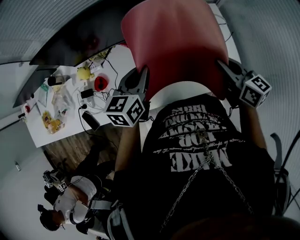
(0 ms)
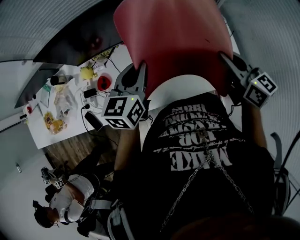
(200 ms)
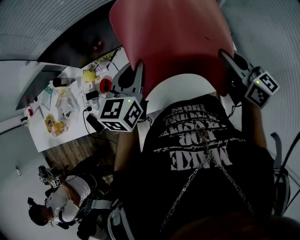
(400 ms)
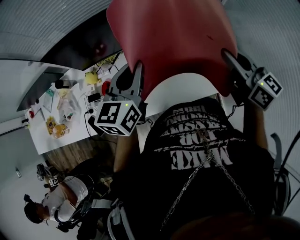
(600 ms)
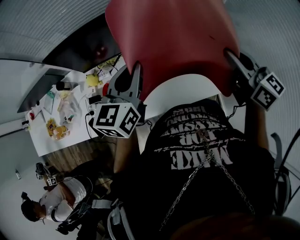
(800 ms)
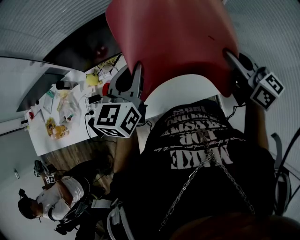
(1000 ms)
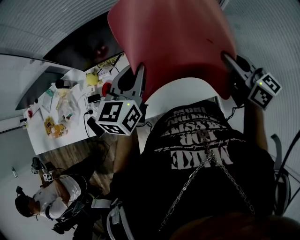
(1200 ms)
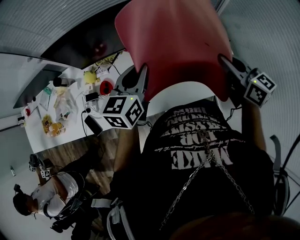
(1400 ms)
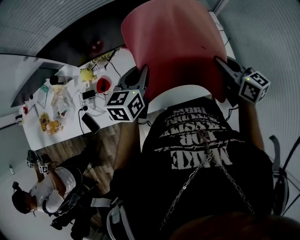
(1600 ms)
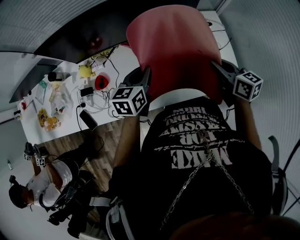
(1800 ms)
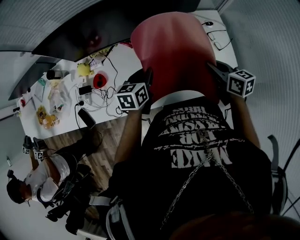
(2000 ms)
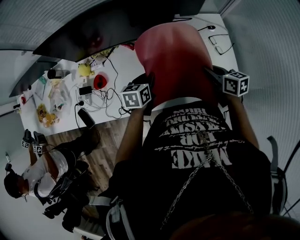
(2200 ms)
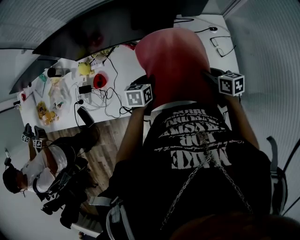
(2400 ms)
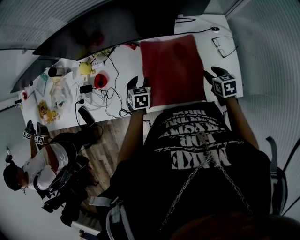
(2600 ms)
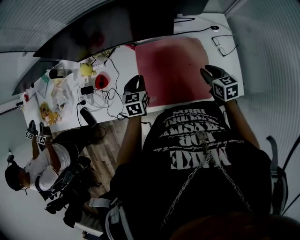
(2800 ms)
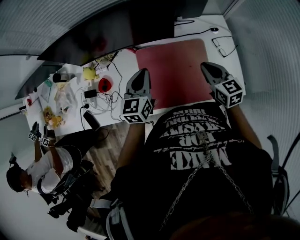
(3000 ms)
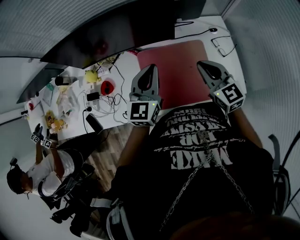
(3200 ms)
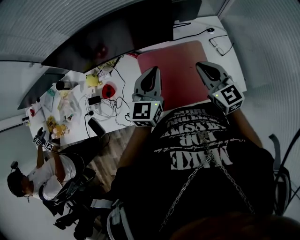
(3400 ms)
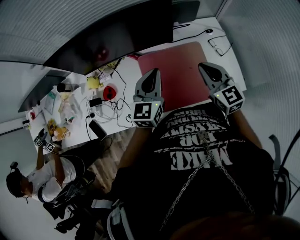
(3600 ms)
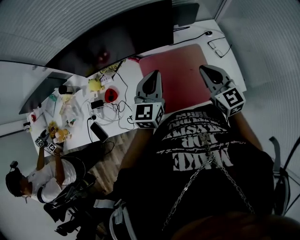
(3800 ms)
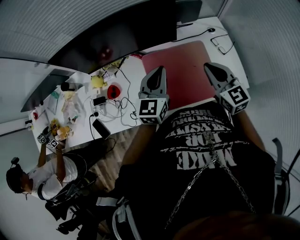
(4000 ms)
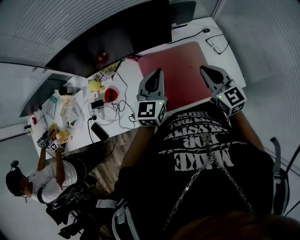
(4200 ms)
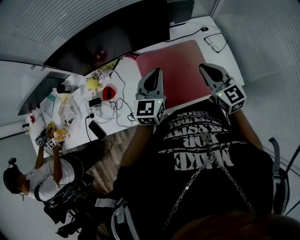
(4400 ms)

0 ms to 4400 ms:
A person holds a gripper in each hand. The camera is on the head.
0 ms to 1400 ms: Both grippers travel together upward, about 10 cm.
1400 ms to 3000 ms: The left gripper reaches some 30 cm downward, then returns, and opens, then closes once more; the right gripper is displaced downward by some 15 cm, and opens, then closes again.
3000 ms to 4400 ms: The right gripper goes approximately 5 cm upward. The left gripper ends up roughly 5 cm from where it was.

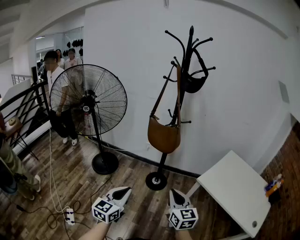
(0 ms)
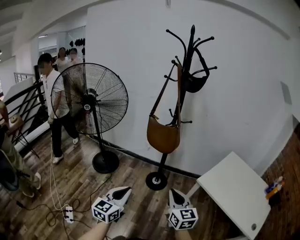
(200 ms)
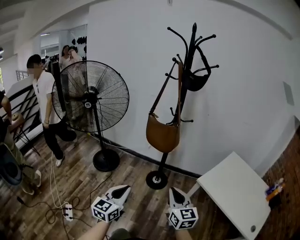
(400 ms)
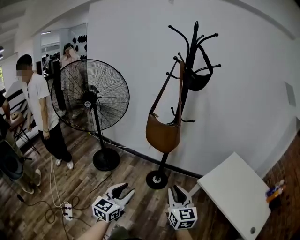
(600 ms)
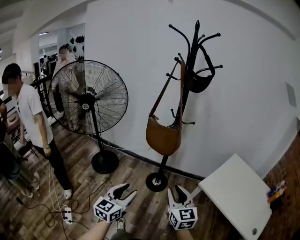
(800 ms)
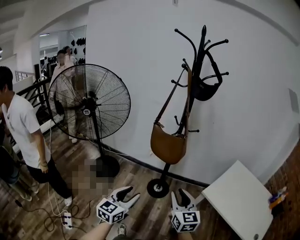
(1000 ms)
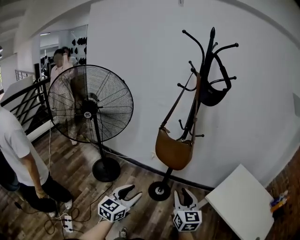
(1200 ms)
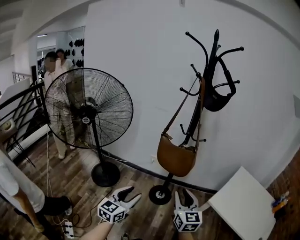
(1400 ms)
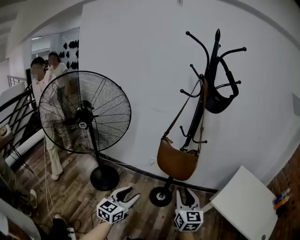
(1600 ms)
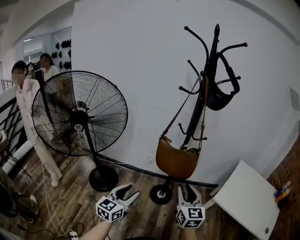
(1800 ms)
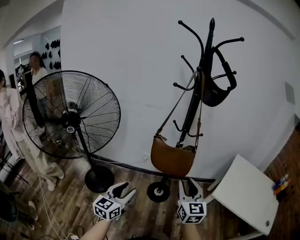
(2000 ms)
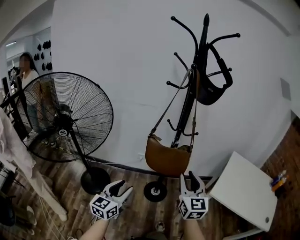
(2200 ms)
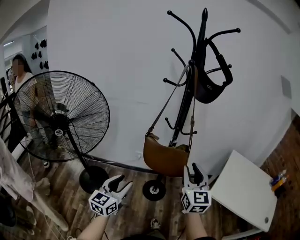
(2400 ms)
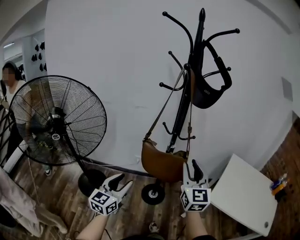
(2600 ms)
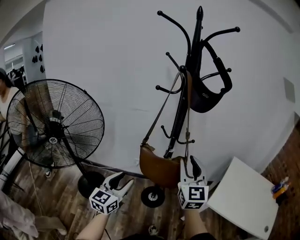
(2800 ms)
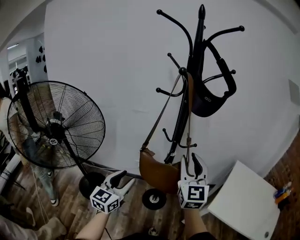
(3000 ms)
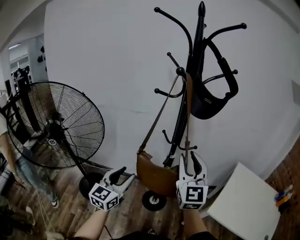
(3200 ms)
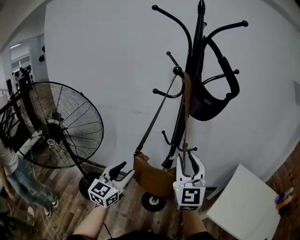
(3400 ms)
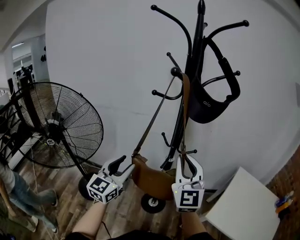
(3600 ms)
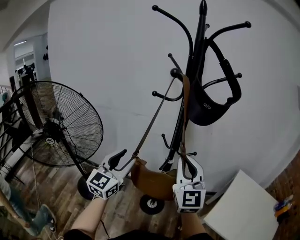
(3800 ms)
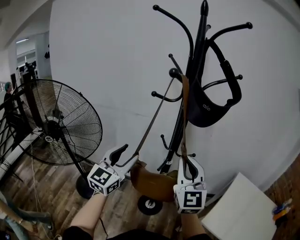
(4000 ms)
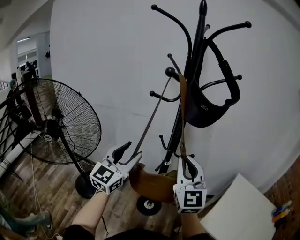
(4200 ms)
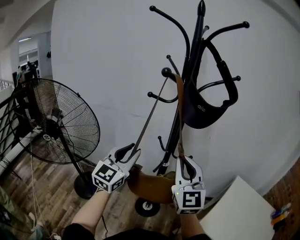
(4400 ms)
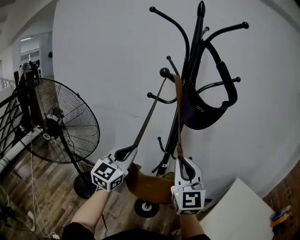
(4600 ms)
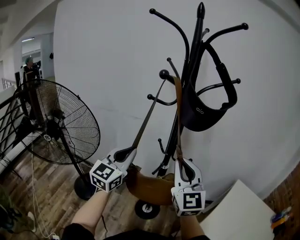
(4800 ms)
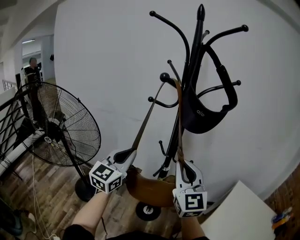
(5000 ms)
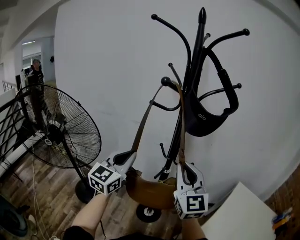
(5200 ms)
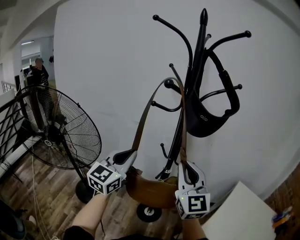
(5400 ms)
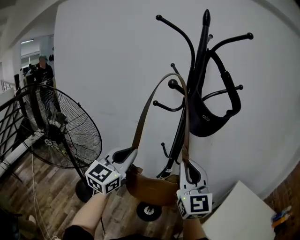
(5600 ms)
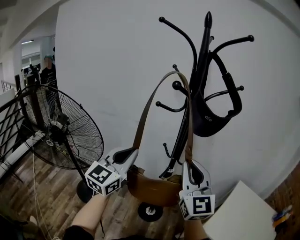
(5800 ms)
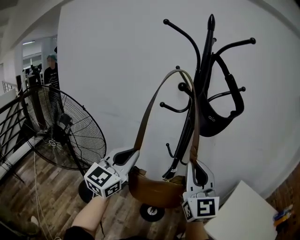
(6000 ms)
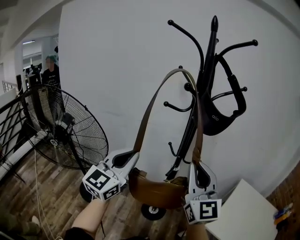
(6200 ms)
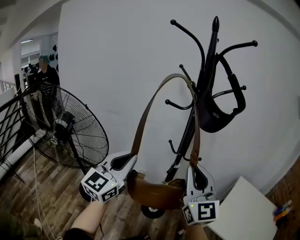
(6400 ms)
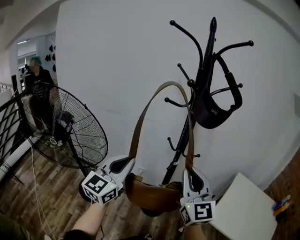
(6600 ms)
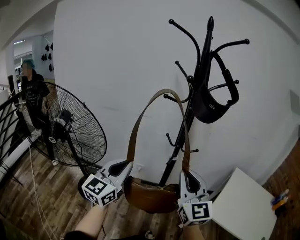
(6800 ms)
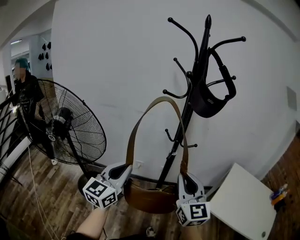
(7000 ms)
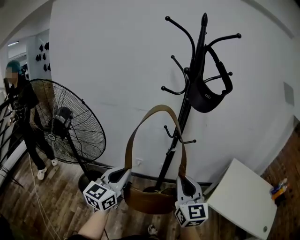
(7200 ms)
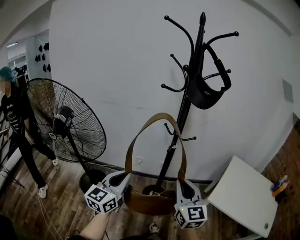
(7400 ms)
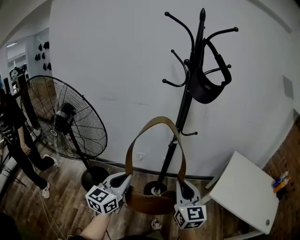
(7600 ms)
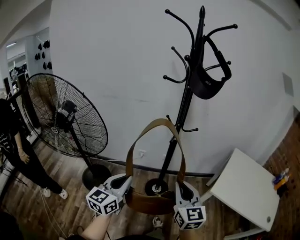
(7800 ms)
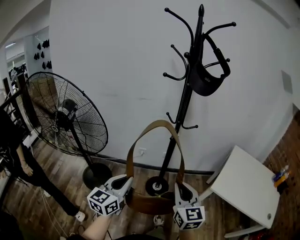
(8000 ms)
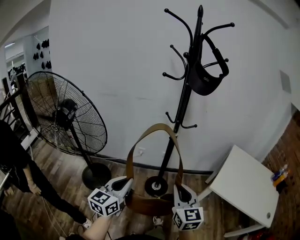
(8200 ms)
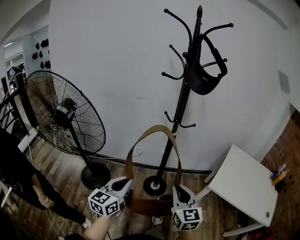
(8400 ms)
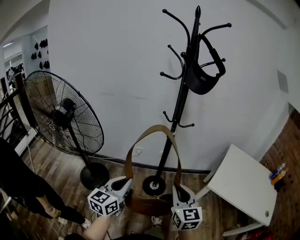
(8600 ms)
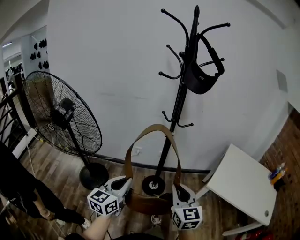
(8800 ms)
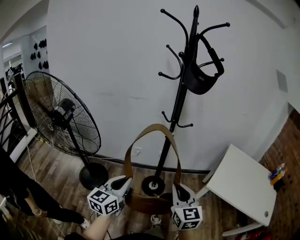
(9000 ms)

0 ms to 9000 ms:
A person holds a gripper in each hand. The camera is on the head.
0 ms to 1600 ms: The two grippers go roughly 20 cm forward and to the left. The right gripper opens up, while the left gripper opens.
1600 ms to 3000 ms: The right gripper travels forward and upward by about 25 cm, and changes its angle by about 20 degrees; the left gripper goes approximately 20 cm forward.
3000 ms to 4400 ms: The right gripper changes place by about 5 cm, and closes up. The left gripper is displaced upward, forward and to the right by roughly 20 cm.
4400 ms to 6000 ms: Both grippers travel together upward, roughly 5 cm. The left gripper closes.
6000 ms to 7600 ms: Both grippers travel together downward and backward, approximately 25 cm. The left gripper changes its angle by approximately 20 degrees; the right gripper rotates roughly 20 degrees.
7600 ms to 9000 ms: The left gripper moves approximately 5 cm. The right gripper shifts by roughly 5 cm.

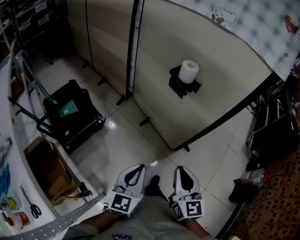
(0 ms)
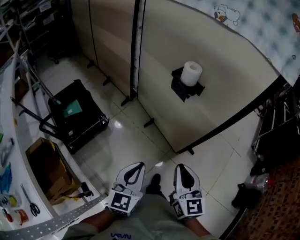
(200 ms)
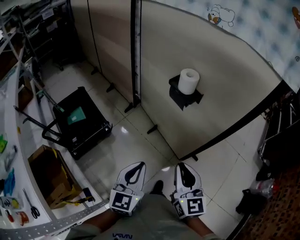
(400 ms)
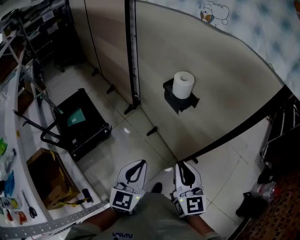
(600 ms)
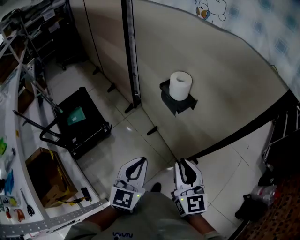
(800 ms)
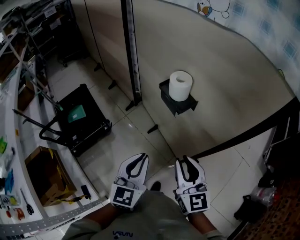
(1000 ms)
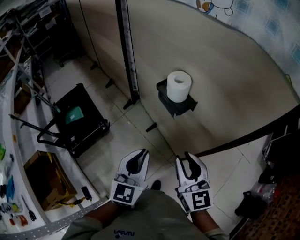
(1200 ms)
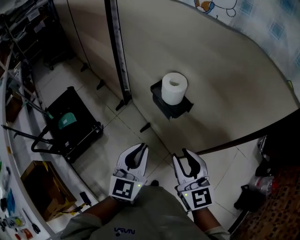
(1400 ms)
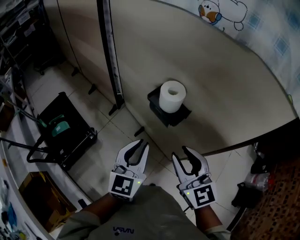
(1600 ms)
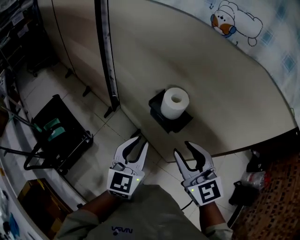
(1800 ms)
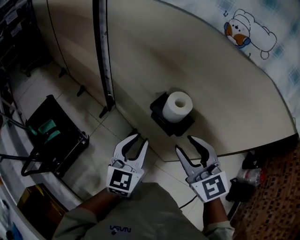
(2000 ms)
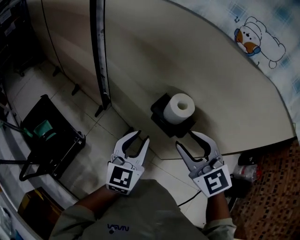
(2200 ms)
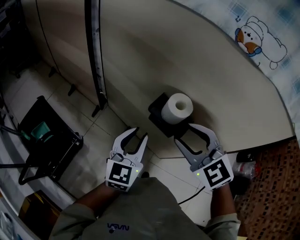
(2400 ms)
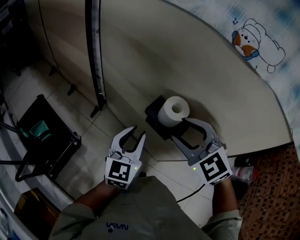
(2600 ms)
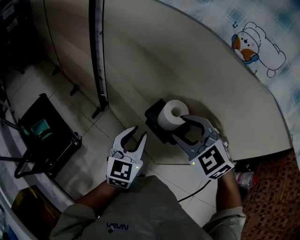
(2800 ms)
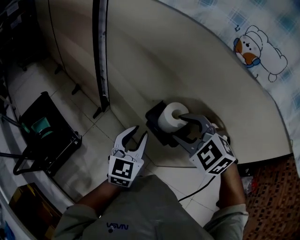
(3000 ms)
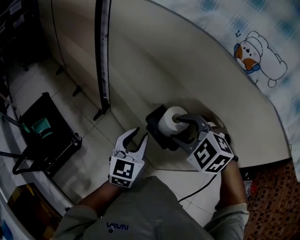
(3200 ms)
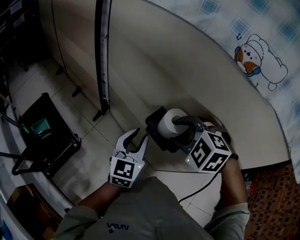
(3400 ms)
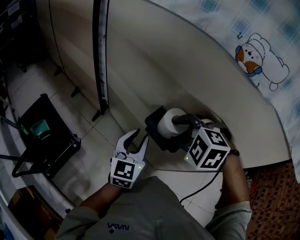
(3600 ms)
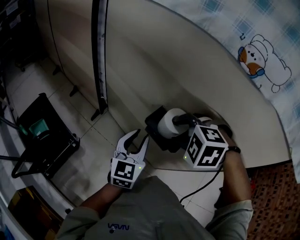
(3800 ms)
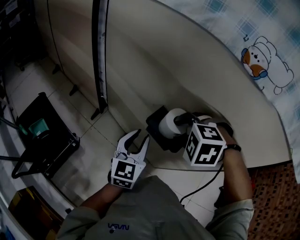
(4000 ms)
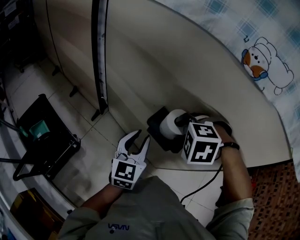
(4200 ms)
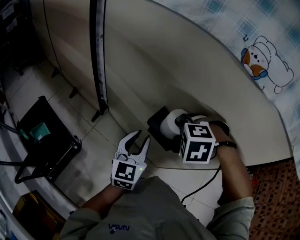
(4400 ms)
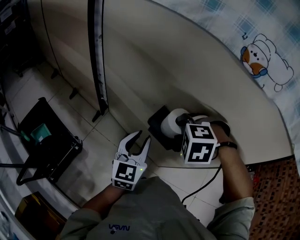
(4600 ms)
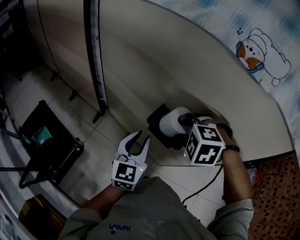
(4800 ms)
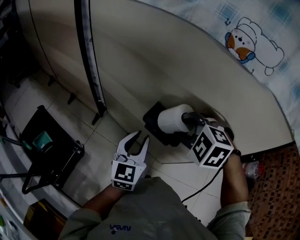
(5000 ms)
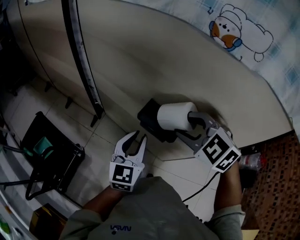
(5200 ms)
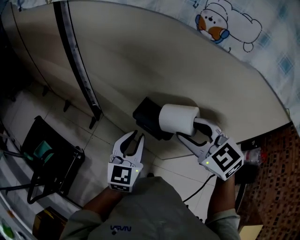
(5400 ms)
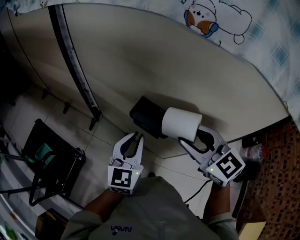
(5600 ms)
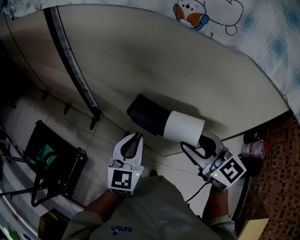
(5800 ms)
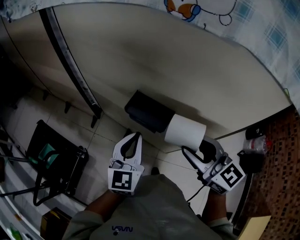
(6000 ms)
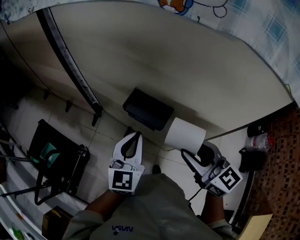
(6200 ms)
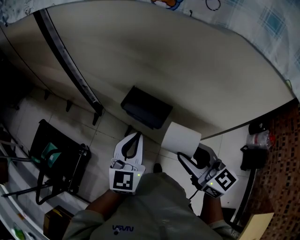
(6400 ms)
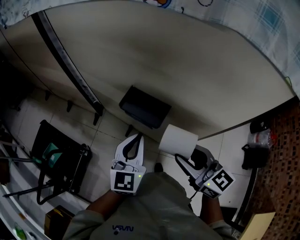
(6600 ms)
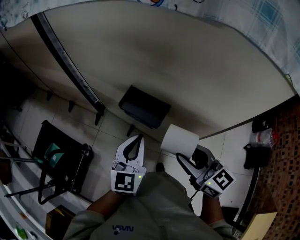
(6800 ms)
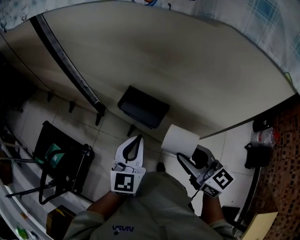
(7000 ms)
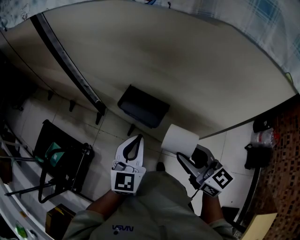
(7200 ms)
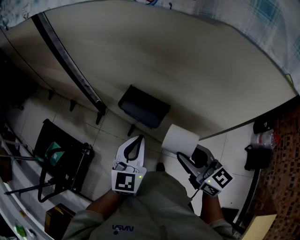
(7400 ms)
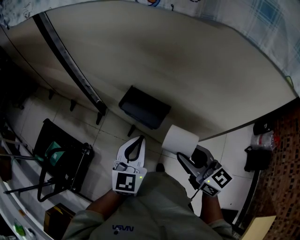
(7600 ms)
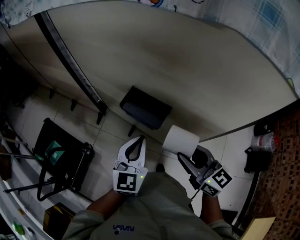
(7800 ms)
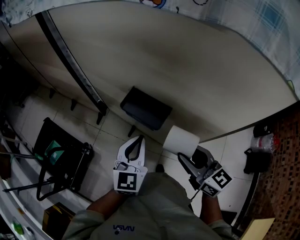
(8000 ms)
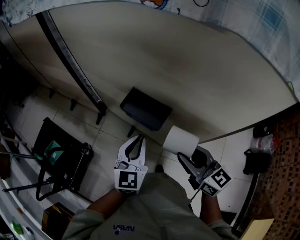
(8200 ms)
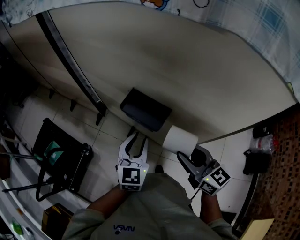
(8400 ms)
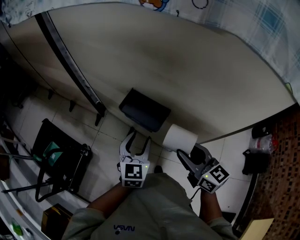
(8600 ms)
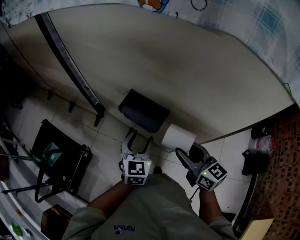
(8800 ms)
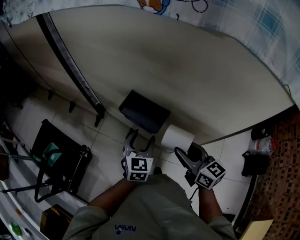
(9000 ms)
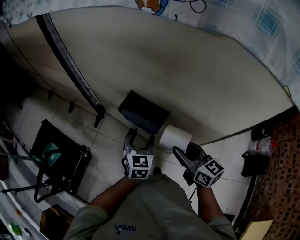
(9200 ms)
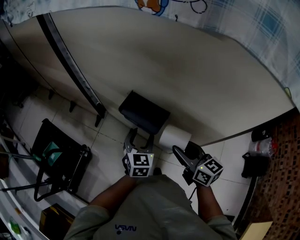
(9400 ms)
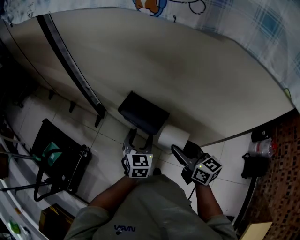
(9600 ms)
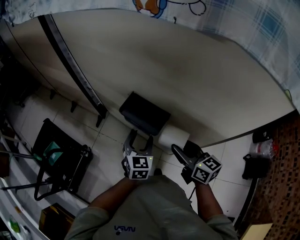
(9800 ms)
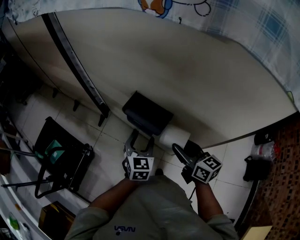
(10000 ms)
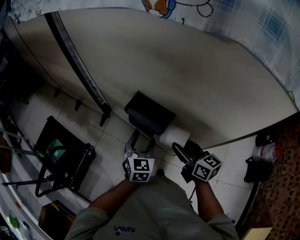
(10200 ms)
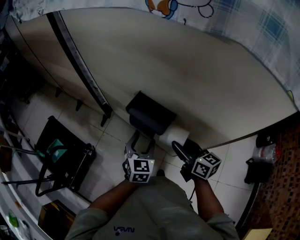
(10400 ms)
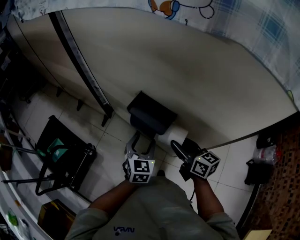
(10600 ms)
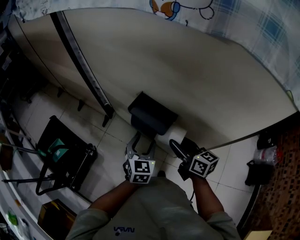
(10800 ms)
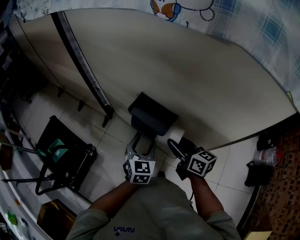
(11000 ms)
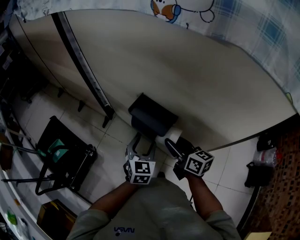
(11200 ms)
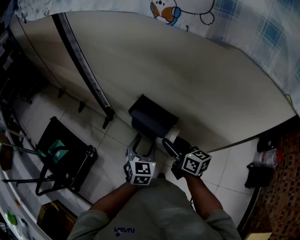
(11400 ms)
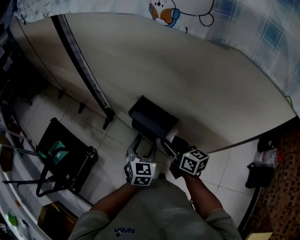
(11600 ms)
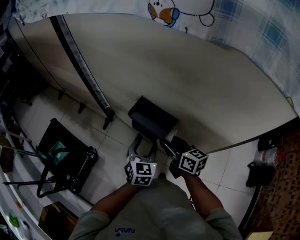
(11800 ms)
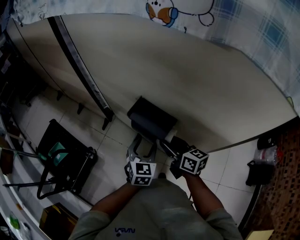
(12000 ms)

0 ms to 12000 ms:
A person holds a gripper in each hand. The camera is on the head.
0 ms to 1600 ms: The two grippers go about 30 cm forward. The right gripper opens.
1600 ms to 3000 ms: Both grippers travel together forward, about 15 cm. The right gripper tilts its fingers about 40 degrees downward.
3000 ms to 4400 ms: The right gripper travels downward by about 5 cm, and turns by roughly 40 degrees.
4400 ms to 6000 ms: The right gripper moves roughly 15 cm, and tilts its fingers about 70 degrees upward. The left gripper ends up some 10 cm from where it was.
6000 ms to 7600 ms: The right gripper moves downward, approximately 10 cm. The left gripper moves roughly 5 cm.
7600 ms to 9000 ms: The left gripper moves downward, roughly 10 cm, and opens up. The right gripper ends up about 5 cm from where it was.
9000 ms to 10400 ms: The right gripper shifts by some 5 cm.
10400 ms to 12000 ms: The right gripper shifts by approximately 5 cm.
